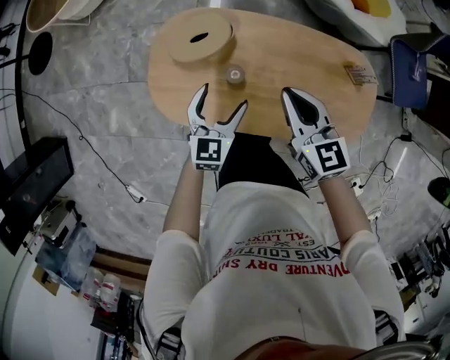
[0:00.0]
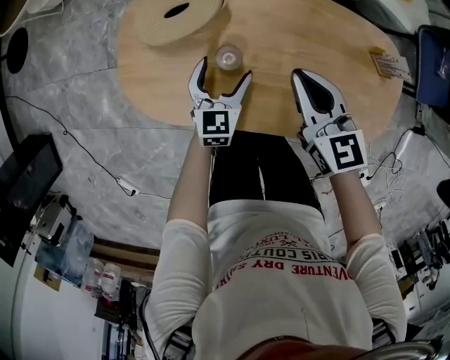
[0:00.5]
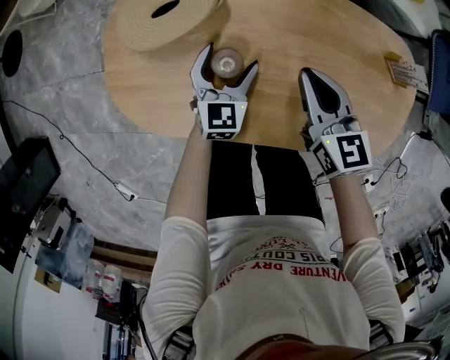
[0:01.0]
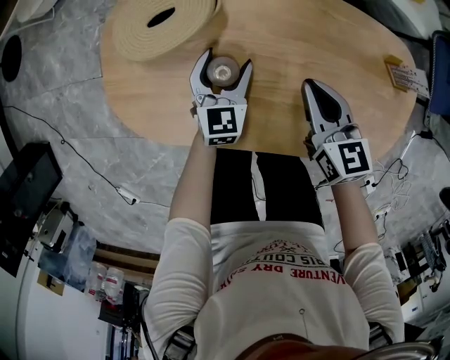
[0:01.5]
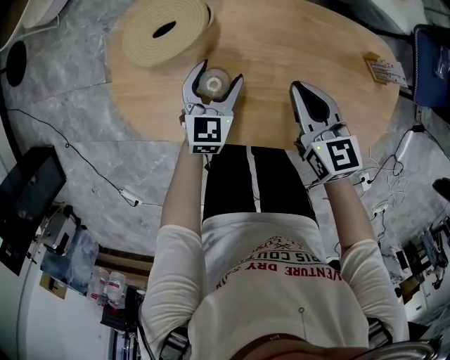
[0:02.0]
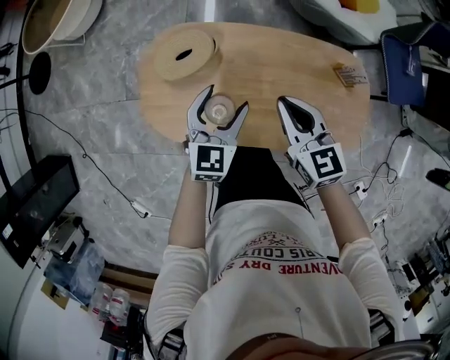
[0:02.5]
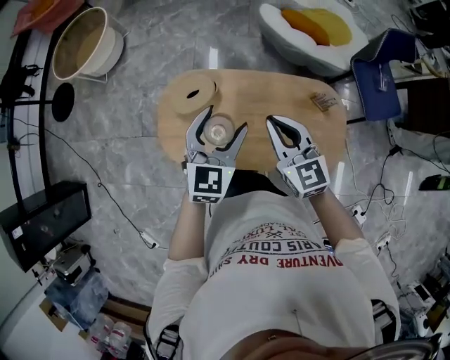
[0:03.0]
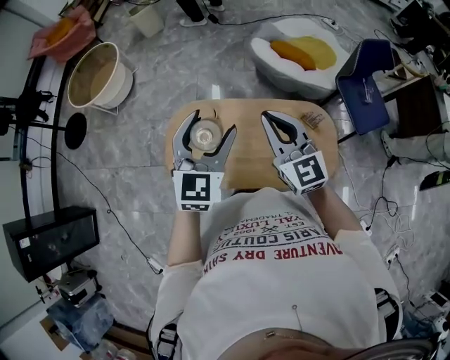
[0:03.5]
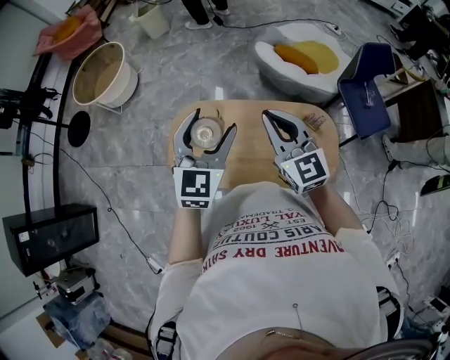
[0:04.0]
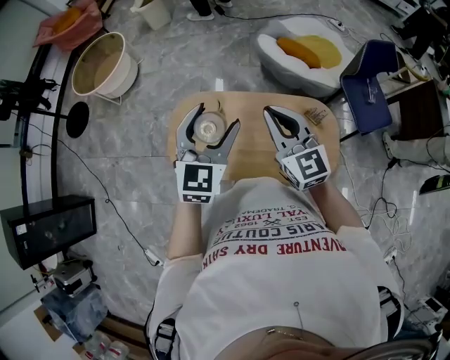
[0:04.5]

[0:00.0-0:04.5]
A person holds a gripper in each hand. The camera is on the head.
0:00.0 to 0:02.0: The two grippers go roughly 15 cm downward.
0:02.0 to 0:04.5: The two grippers go roughly 50 cm upward. The right gripper rotates some 30 degrees; the left gripper rotates approximately 20 degrees.

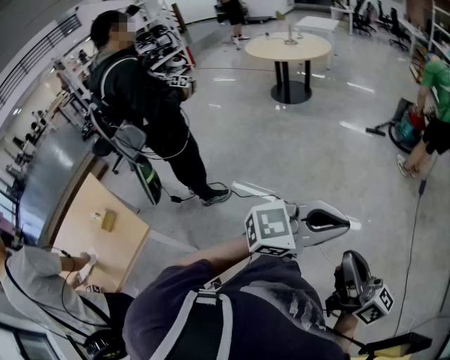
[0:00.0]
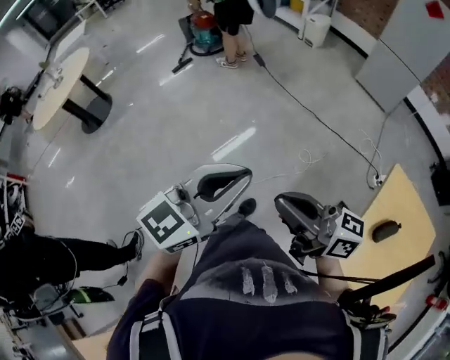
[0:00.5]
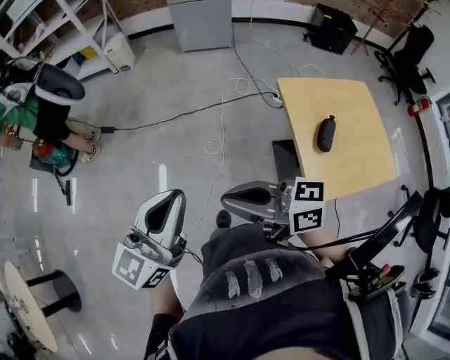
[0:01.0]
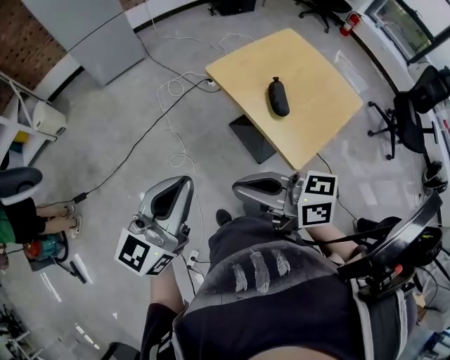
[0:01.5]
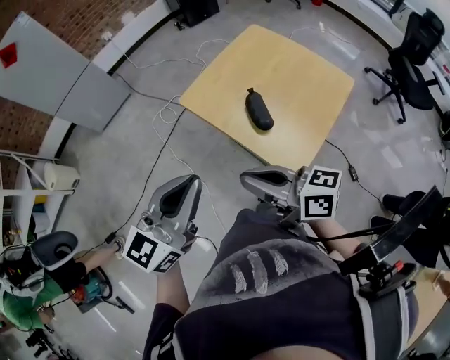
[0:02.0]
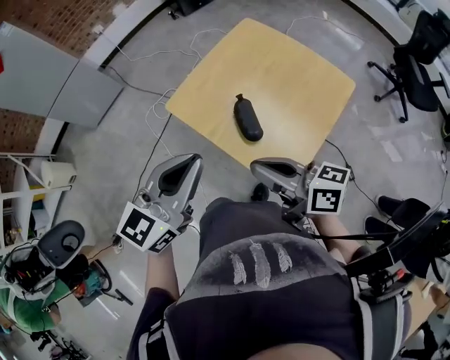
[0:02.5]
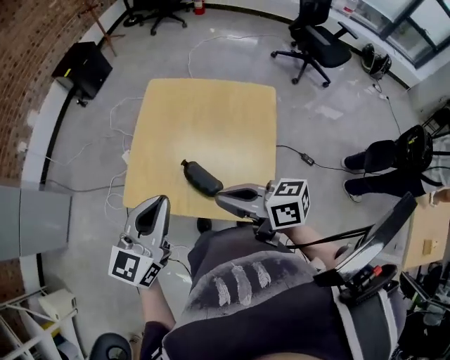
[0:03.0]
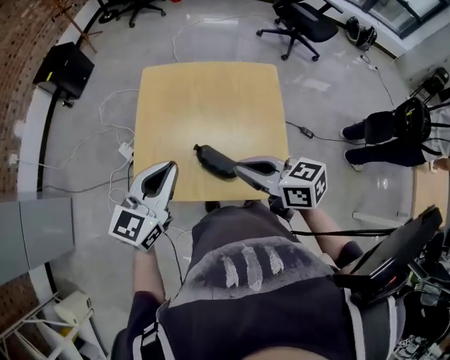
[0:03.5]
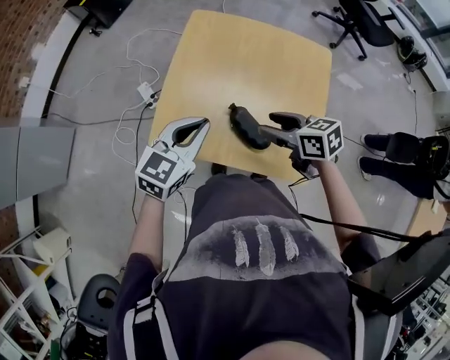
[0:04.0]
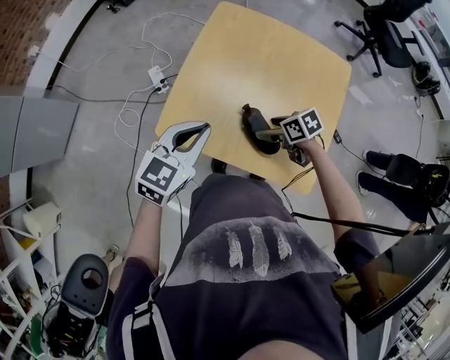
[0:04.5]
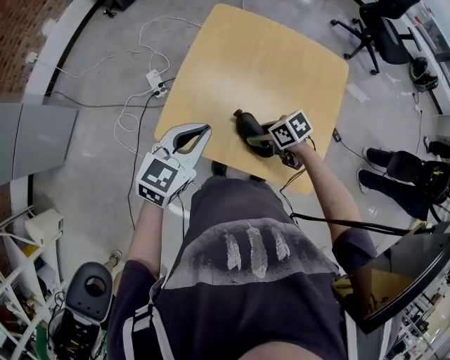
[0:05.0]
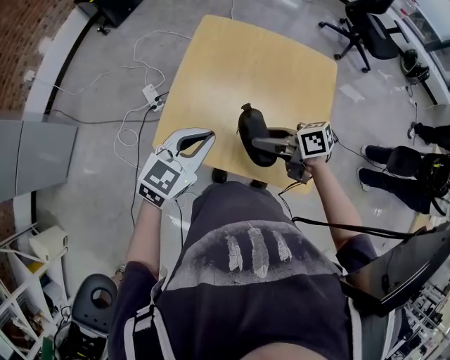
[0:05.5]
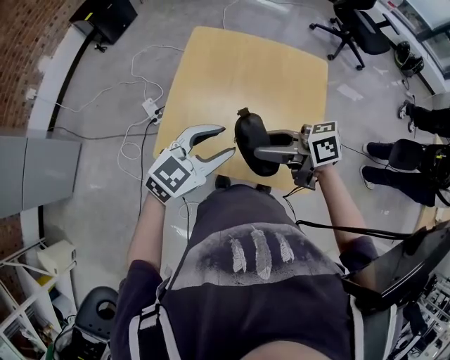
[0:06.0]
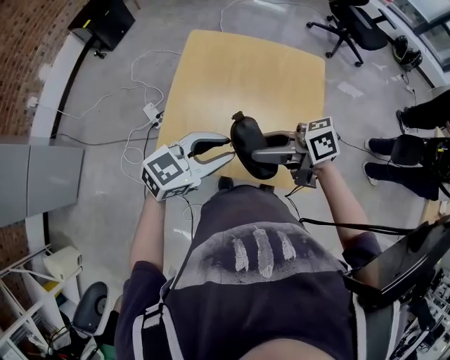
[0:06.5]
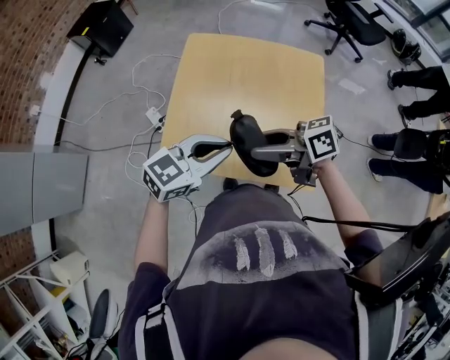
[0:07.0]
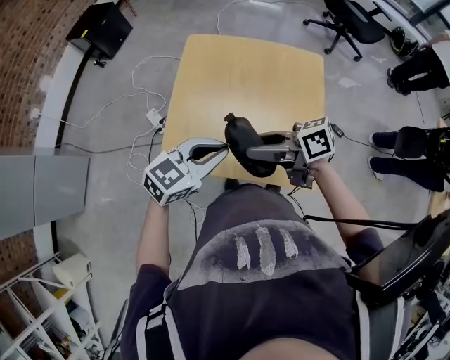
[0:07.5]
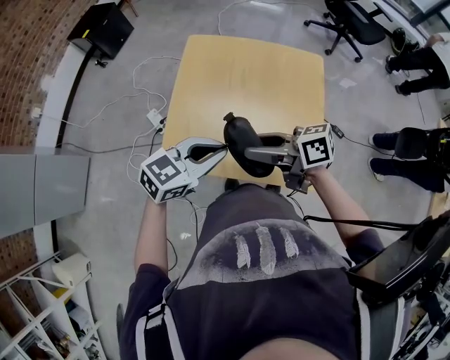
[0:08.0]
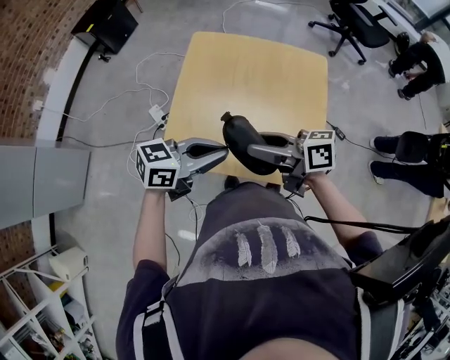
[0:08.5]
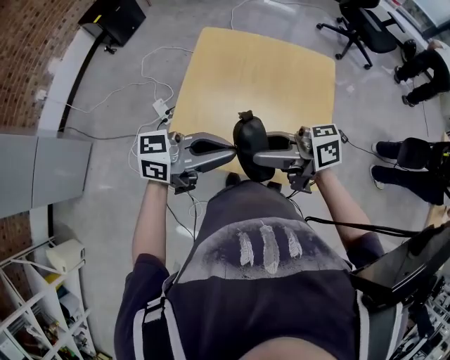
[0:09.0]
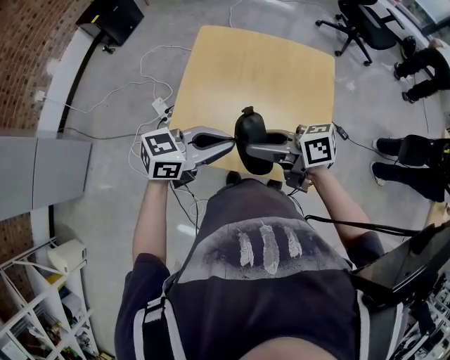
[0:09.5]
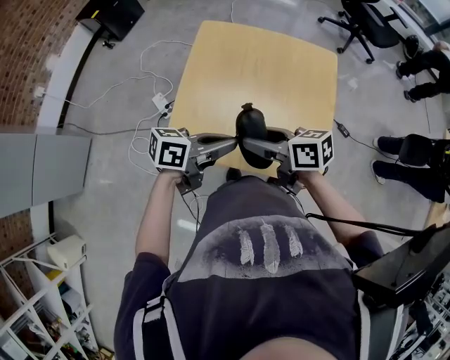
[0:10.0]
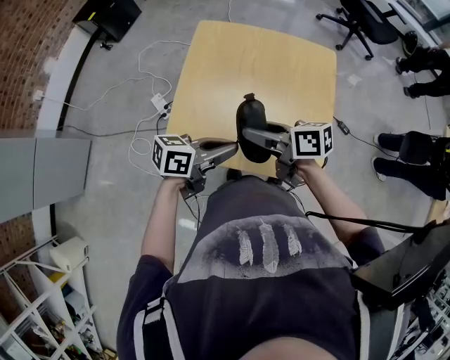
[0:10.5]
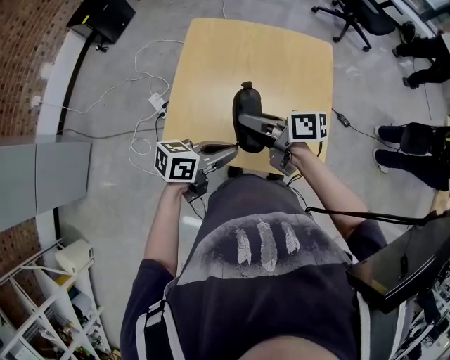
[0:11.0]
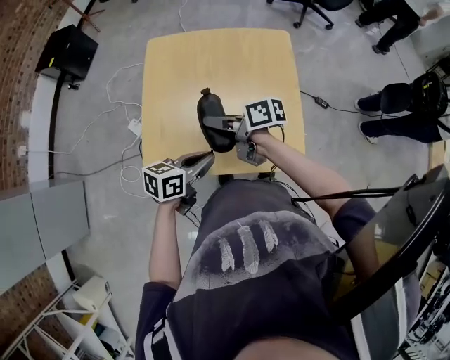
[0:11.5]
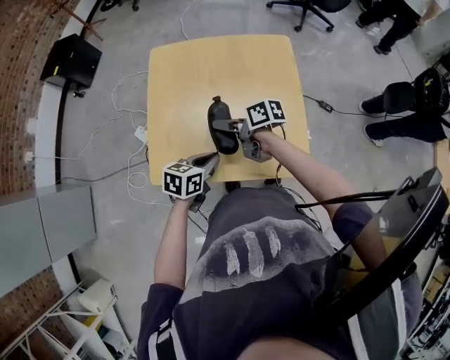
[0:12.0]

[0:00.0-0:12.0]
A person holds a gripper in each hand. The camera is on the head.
0:00.0 to 0:02.0: The left gripper changes place by roughly 50 cm, and rotates some 90 degrees. The right gripper moves about 40 cm, and swivels roughly 100 degrees.
0:02.0 to 0:04.0: The right gripper moves approximately 35 cm, tilts its fingers about 30 degrees downward, and opens its fingers; the left gripper changes place by some 35 cm, and changes its angle by about 40 degrees.
0:04.0 to 0:06.0: The right gripper travels downward and back again, roughly 15 cm each way, and changes its angle by roughly 30 degrees, while the left gripper moves some 5 cm, and opens its fingers.
0:06.0 to 0:08.0: The left gripper closes its fingers.
0:08.0 to 0:10.0: The left gripper turns by about 40 degrees.
0:10.0 to 0:12.0: Both grippers travel together downward, approximately 10 cm. The left gripper changes its angle by roughly 30 degrees; the right gripper swivels about 30 degrees.

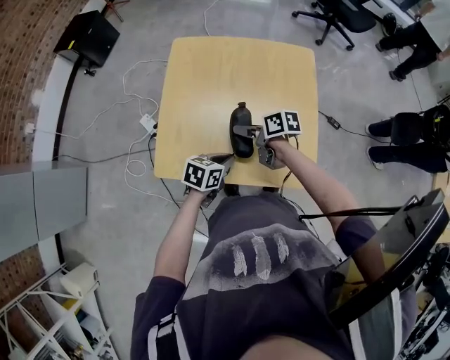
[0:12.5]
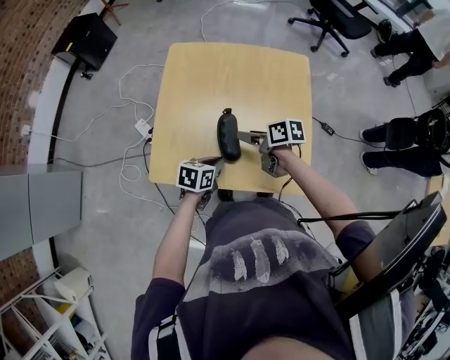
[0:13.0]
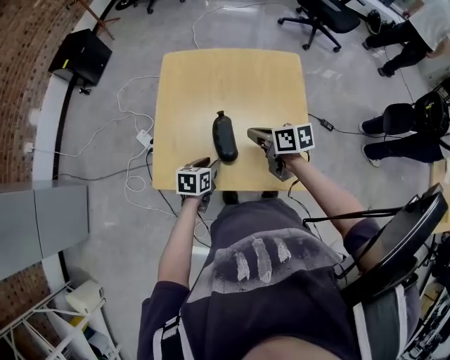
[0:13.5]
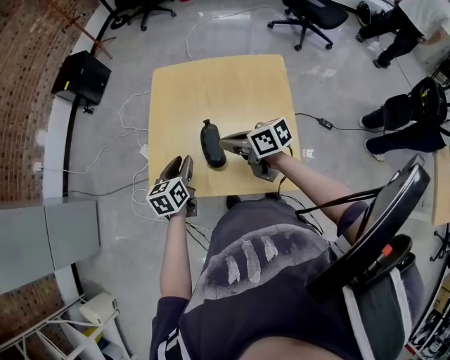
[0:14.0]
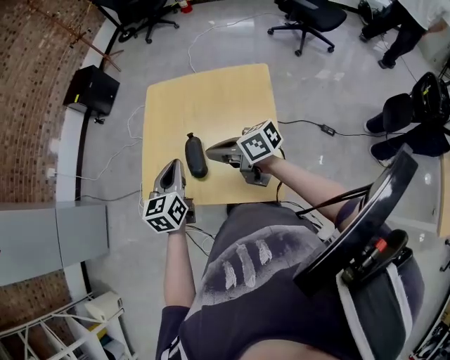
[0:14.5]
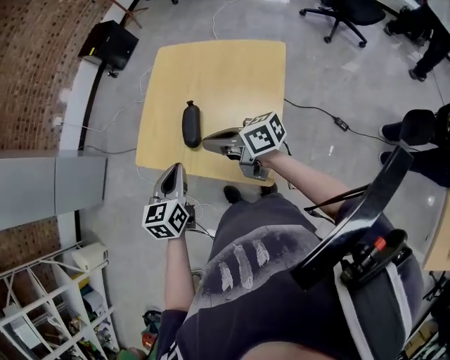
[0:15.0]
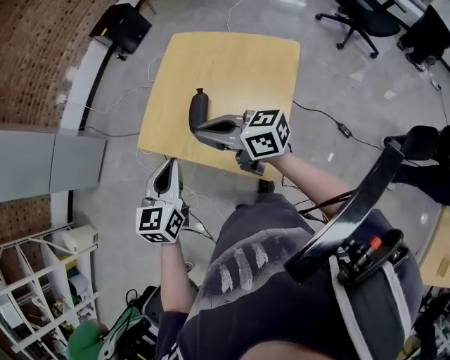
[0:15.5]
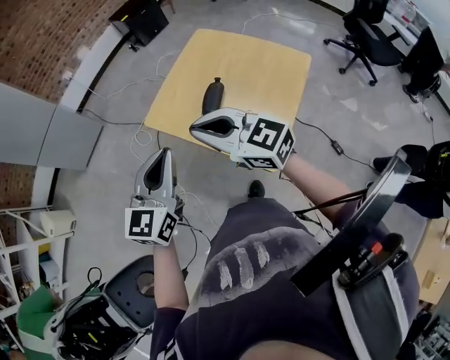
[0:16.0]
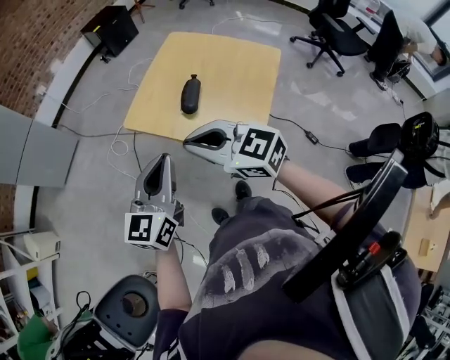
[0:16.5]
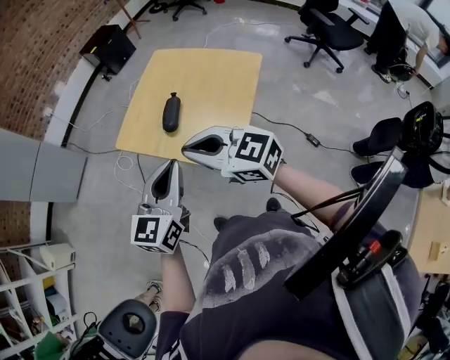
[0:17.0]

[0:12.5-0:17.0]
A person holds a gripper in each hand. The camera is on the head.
0:12.5 to 0:14.5: The grippers both shift upward by about 20 cm. The left gripper turns by about 50 degrees, and opens, then closes once more. Meanwhile the right gripper turns by approximately 40 degrees, and closes.
0:14.5 to 0:17.0: Both grippers move backward and upward, about 25 cm. The right gripper rotates around the line of its fingers by some 40 degrees, counterclockwise from behind.

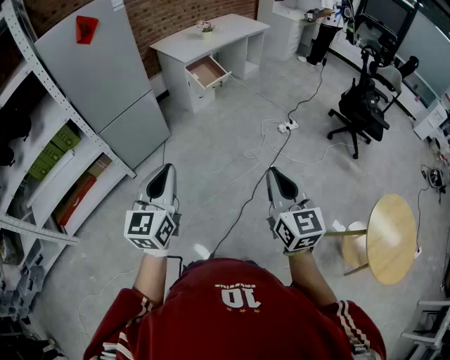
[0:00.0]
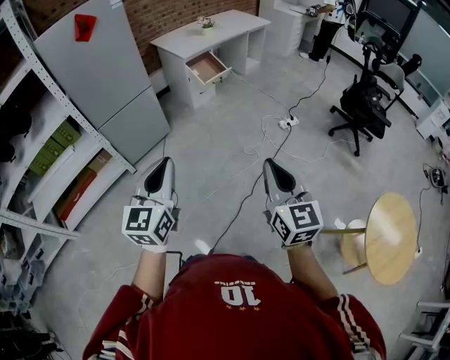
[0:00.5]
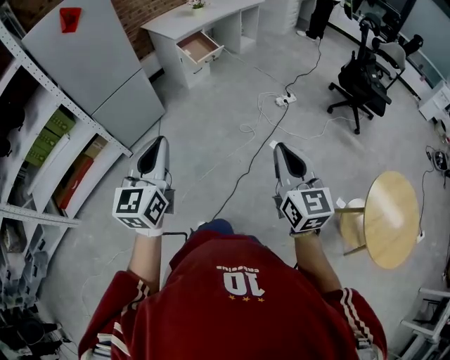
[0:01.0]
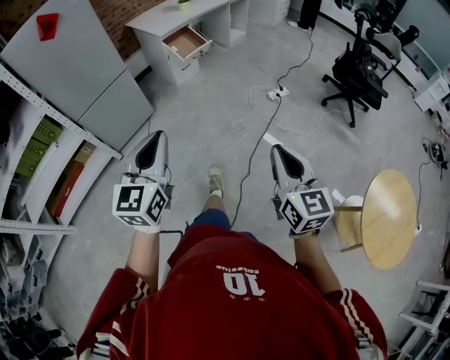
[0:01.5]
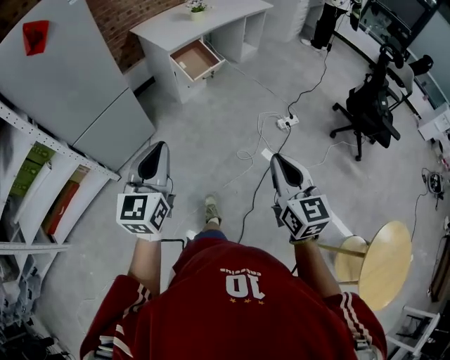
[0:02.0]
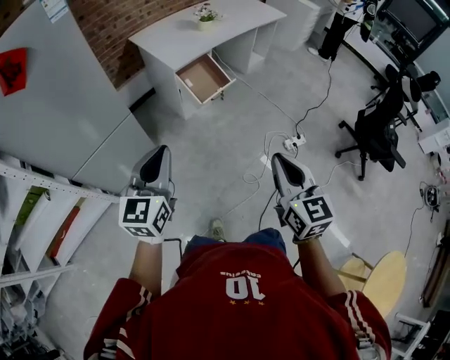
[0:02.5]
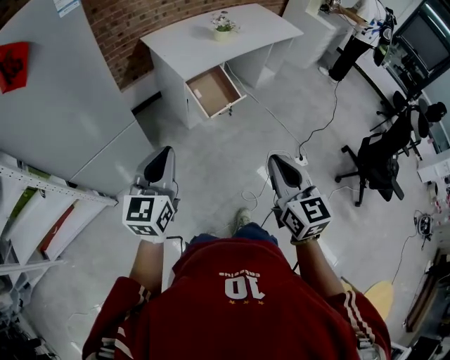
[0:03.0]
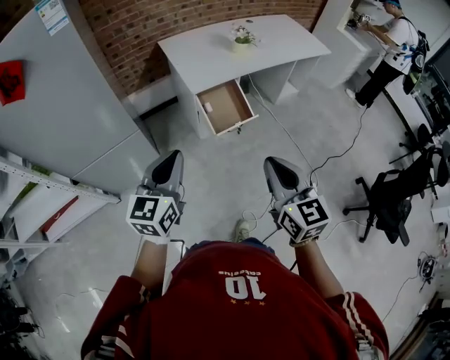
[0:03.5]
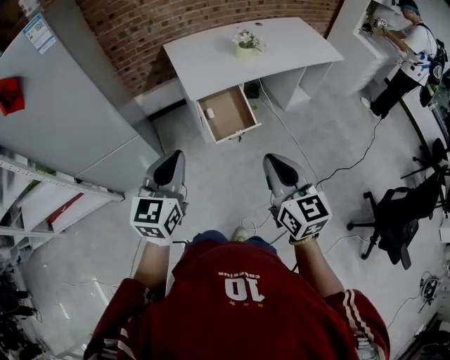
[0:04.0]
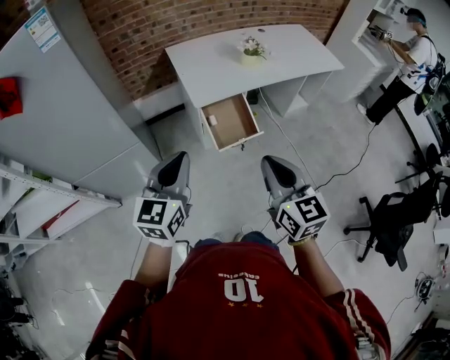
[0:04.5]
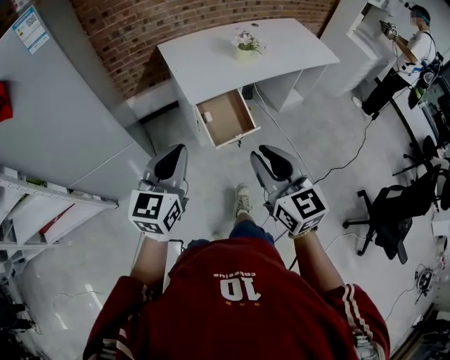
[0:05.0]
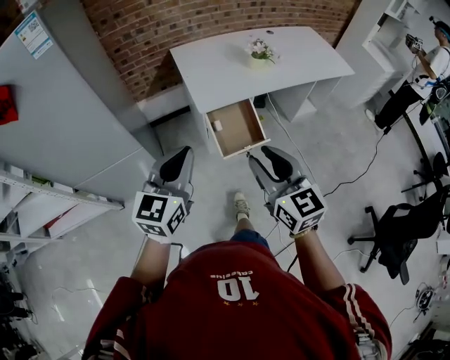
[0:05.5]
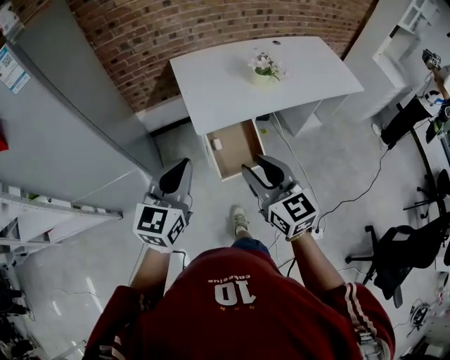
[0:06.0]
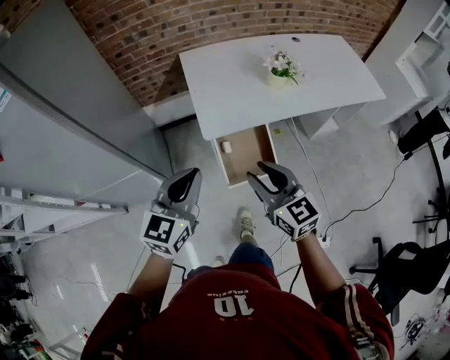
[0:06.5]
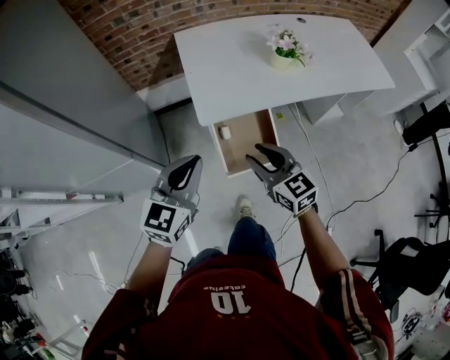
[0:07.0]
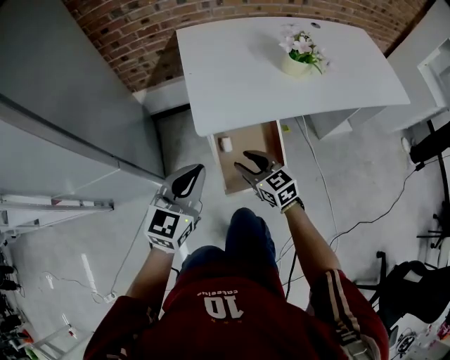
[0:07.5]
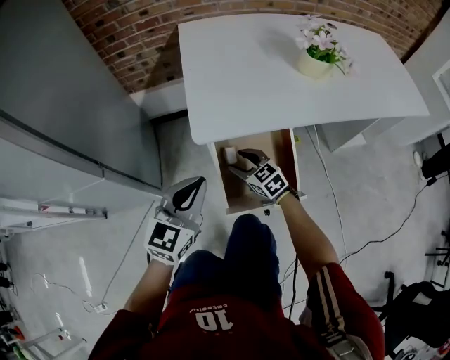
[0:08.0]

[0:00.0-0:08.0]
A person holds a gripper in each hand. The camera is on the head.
0:00.0 to 0:02.0: The grippers both shift forward by some 25 cm.
0:02.0 to 0:04.0: The two grippers travel together, forward, approximately 50 cm. The right gripper turns by approximately 30 degrees.
0:04.0 to 0:06.0: The two grippers go about 20 cm forward. The right gripper opens.
0:06.0 to 0:08.0: The left gripper heads downward and forward, covering roughly 35 cm; the right gripper travels downward and forward by about 60 cm, and changes its angle by roughly 30 degrees.
